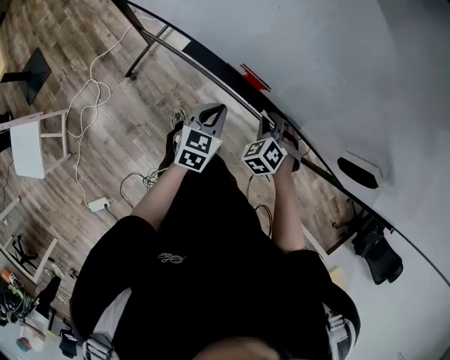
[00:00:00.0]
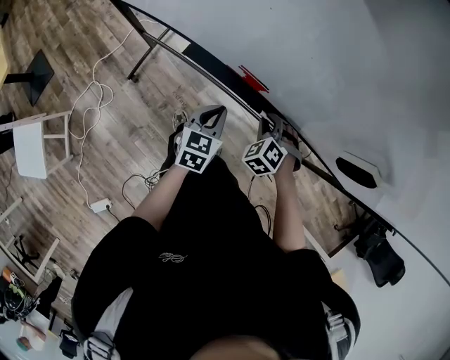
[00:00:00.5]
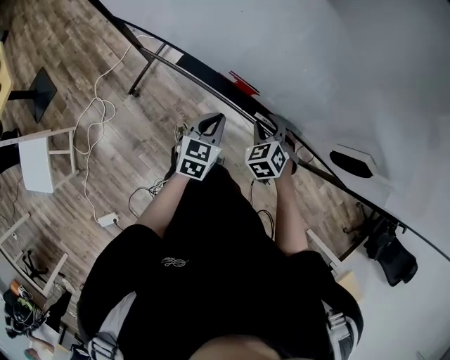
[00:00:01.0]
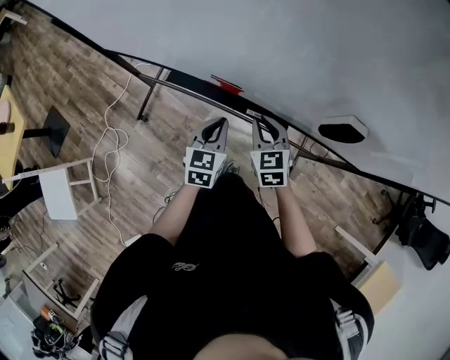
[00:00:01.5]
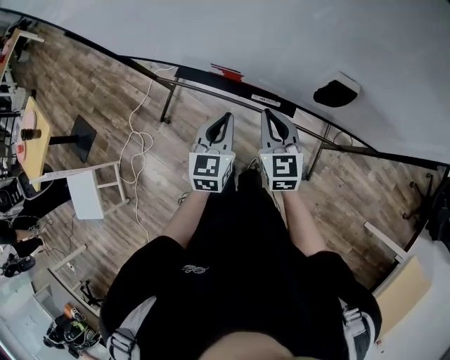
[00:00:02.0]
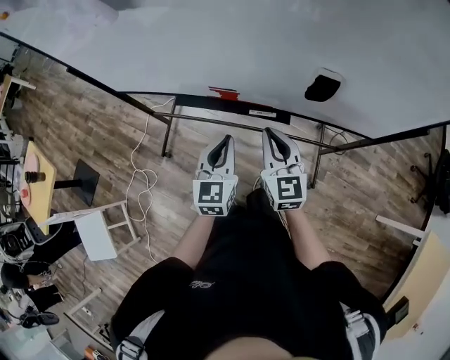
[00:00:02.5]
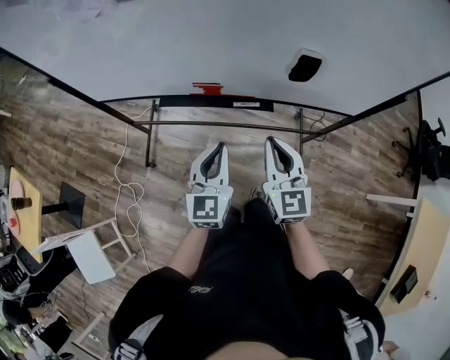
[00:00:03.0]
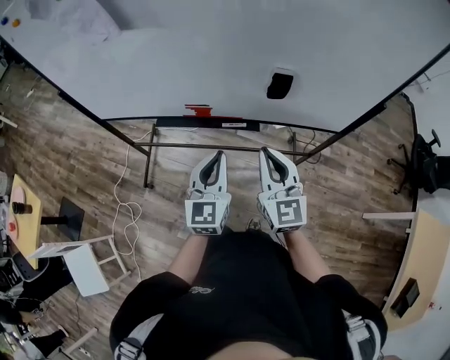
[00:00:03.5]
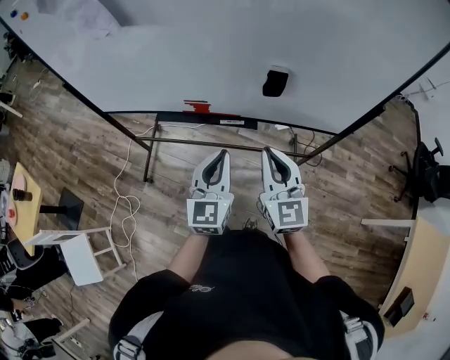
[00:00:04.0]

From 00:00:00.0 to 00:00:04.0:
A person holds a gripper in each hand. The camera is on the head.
From 00:00:00.0 to 00:00:02.0: The right gripper travels upward by about 15 cm, and tilts its fingers roughly 40 degrees upward; the left gripper shifts approximately 15 cm upward and to the right.
From 00:00:02.0 to 00:00:04.0: The left gripper shifts approximately 20 cm upward, backward and to the right, and changes its angle by roughly 20 degrees, while the right gripper shifts about 25 cm backward, upward and to the right, and rotates approximately 20 degrees.

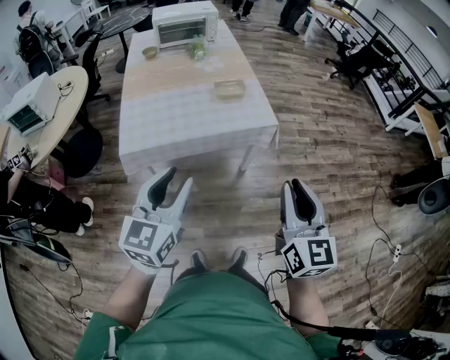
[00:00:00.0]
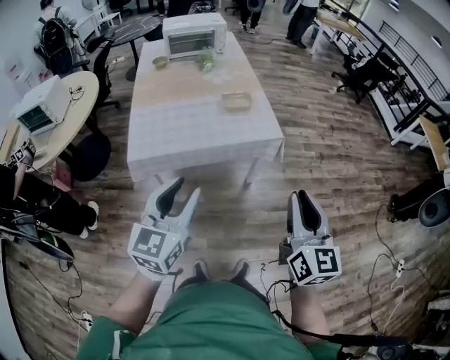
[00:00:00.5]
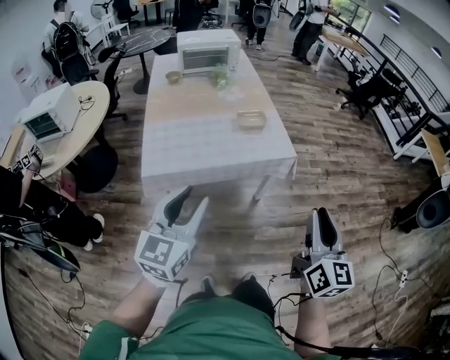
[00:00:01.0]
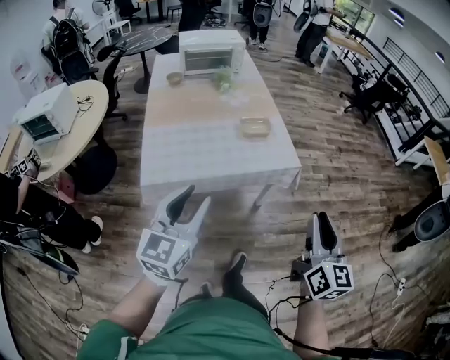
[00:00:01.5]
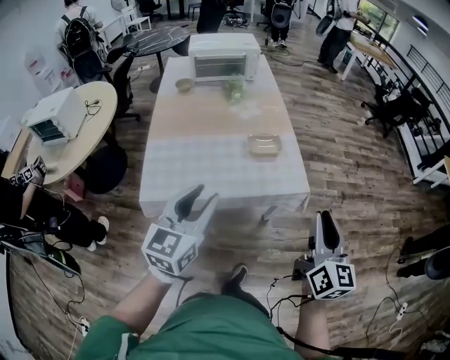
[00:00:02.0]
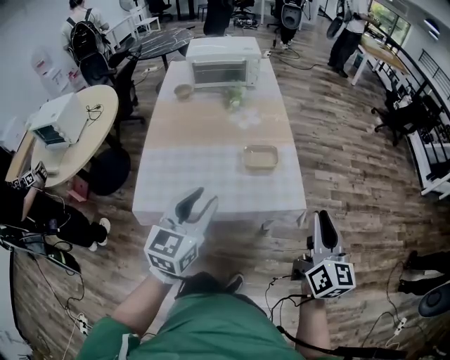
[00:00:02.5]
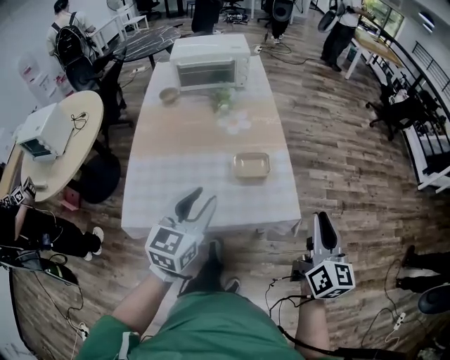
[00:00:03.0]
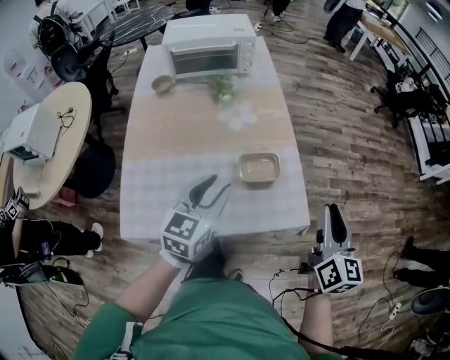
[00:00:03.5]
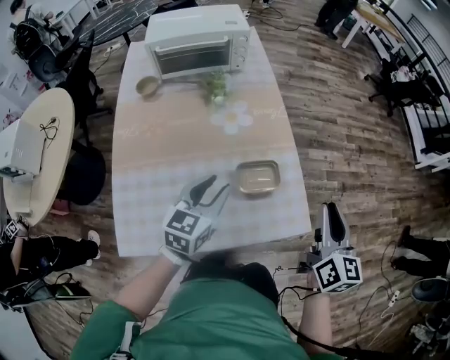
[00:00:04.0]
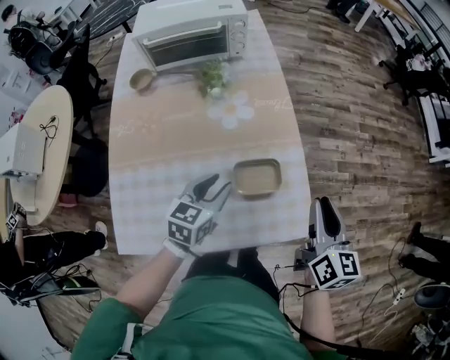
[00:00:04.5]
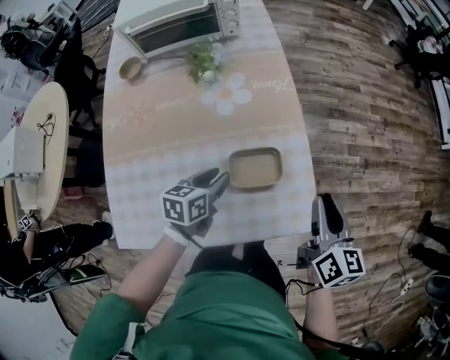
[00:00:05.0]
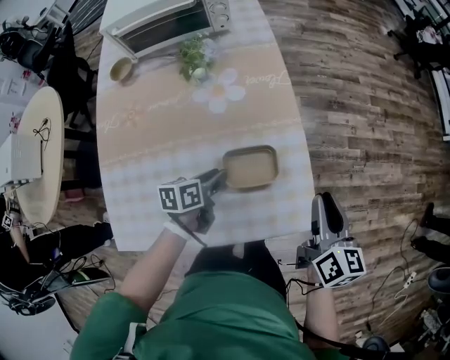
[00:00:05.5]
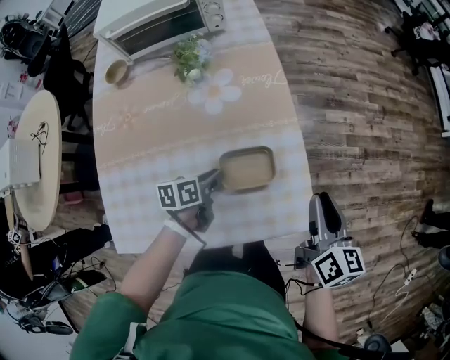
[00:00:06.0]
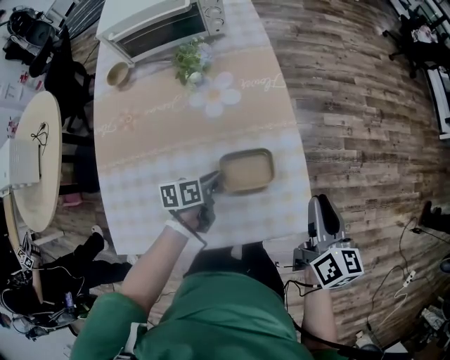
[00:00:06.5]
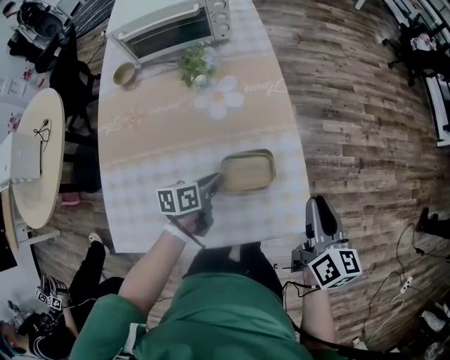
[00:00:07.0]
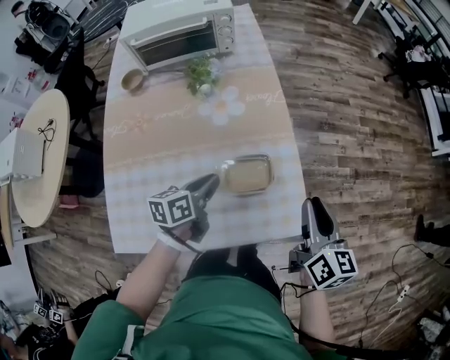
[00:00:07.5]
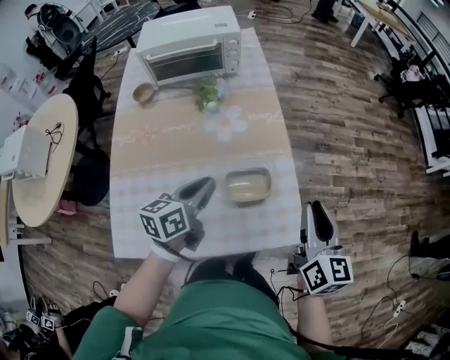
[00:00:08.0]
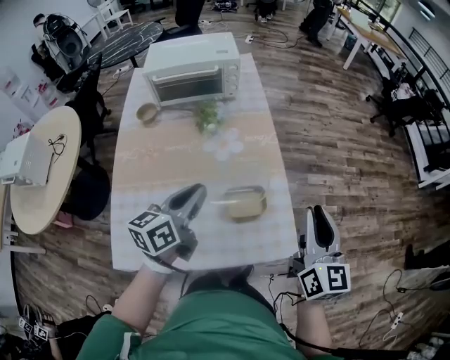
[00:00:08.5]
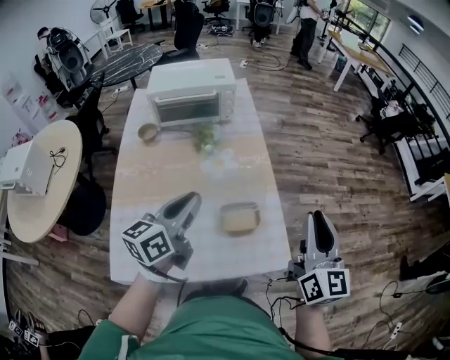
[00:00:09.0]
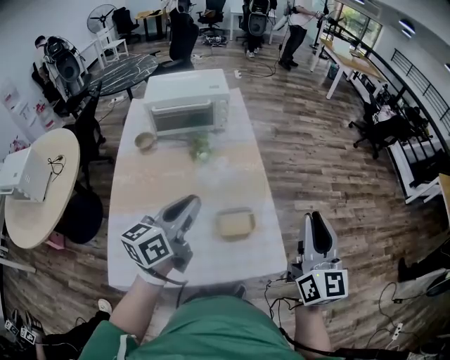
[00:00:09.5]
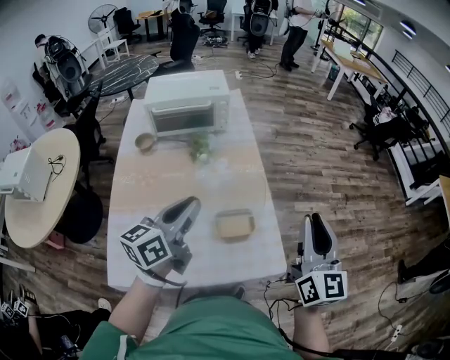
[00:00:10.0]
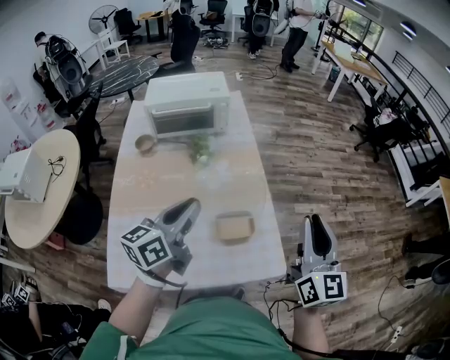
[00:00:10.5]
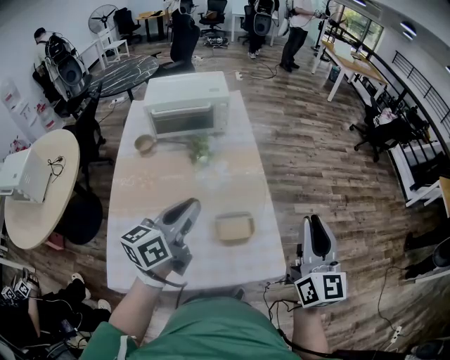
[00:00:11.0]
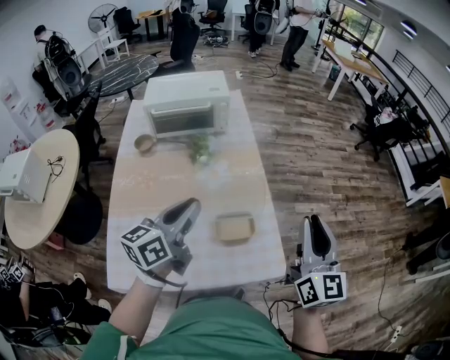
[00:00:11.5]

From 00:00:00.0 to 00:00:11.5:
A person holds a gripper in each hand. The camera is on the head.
From 00:00:00.0 to 00:00:02.0: The grippers both shift forward by about 20 cm.
From 00:00:02.0 to 00:00:04.0: Both grippers travel together forward, some 35 cm.
From 00:00:04.0 to 00:00:06.0: The grippers both shift downward and forward by about 20 cm. The left gripper twists some 40 degrees counterclockwise, seen from behind.
From 00:00:06.0 to 00:00:07.5: The right gripper is displaced upward by roughly 5 cm. Meanwhile the left gripper is displaced upward by roughly 10 cm.
From 00:00:07.5 to 00:00:09.5: The two grippers go roughly 25 cm upward. The right gripper changes its angle by approximately 30 degrees. Meanwhile the left gripper rotates about 30 degrees.
From 00:00:09.5 to 00:00:11.5: The grippers move only a little.

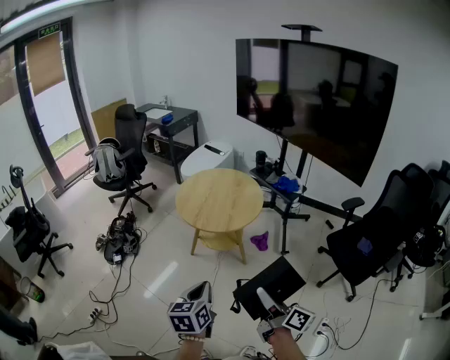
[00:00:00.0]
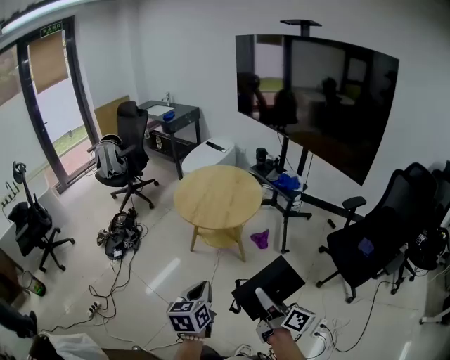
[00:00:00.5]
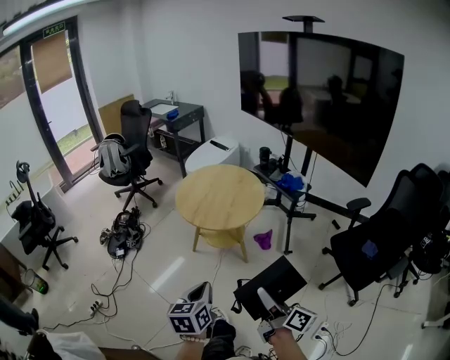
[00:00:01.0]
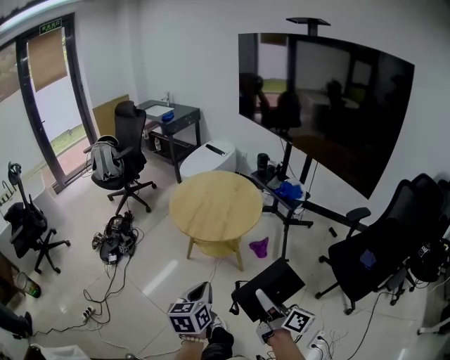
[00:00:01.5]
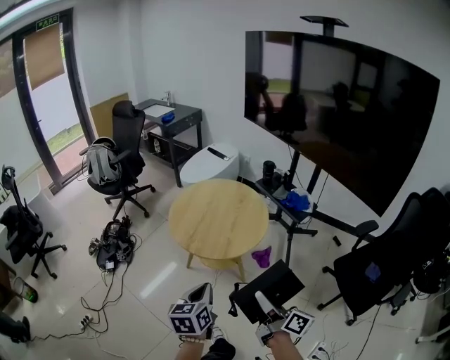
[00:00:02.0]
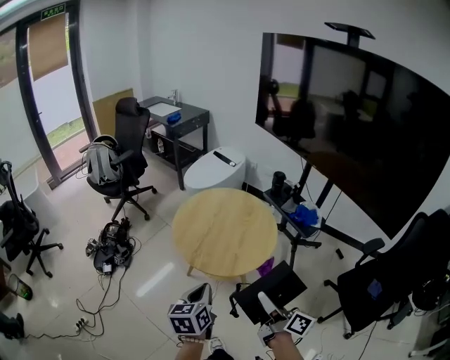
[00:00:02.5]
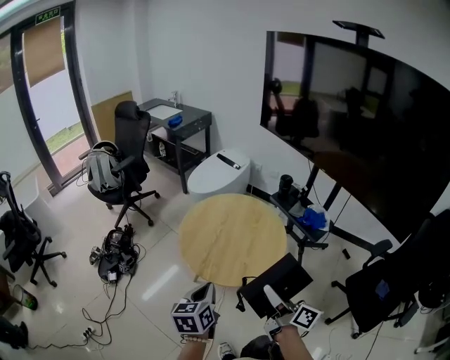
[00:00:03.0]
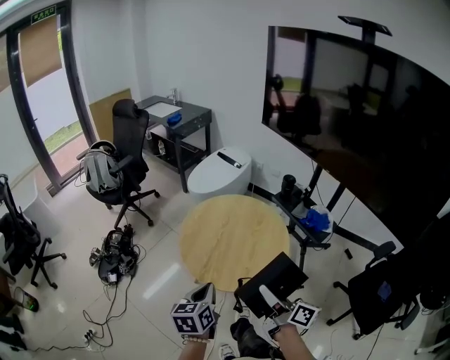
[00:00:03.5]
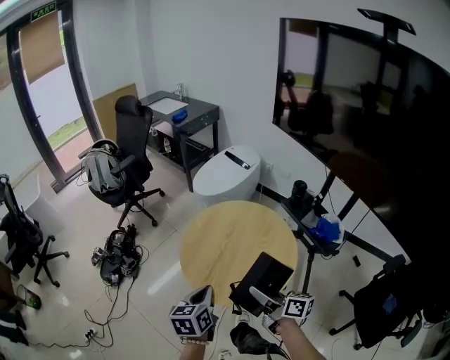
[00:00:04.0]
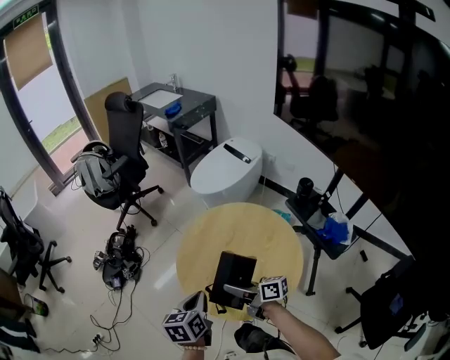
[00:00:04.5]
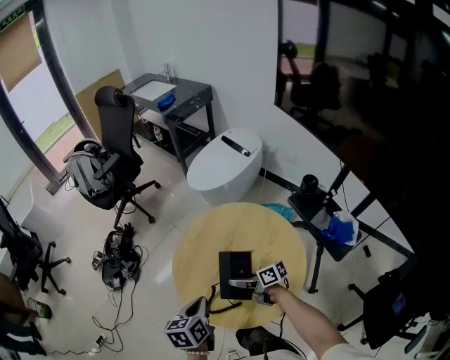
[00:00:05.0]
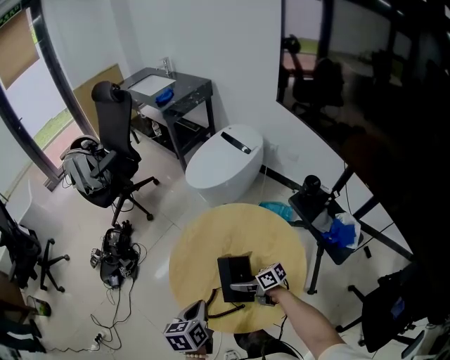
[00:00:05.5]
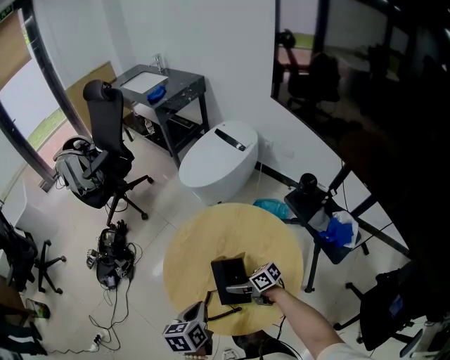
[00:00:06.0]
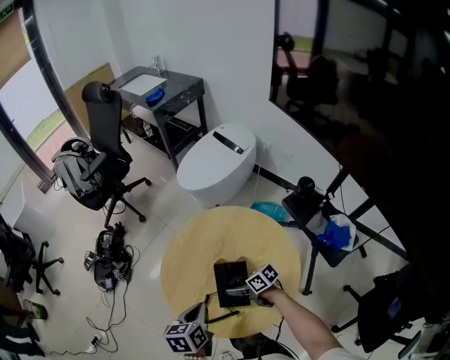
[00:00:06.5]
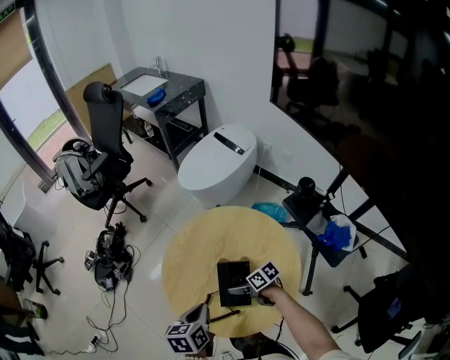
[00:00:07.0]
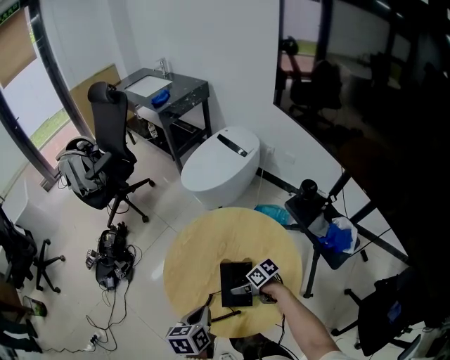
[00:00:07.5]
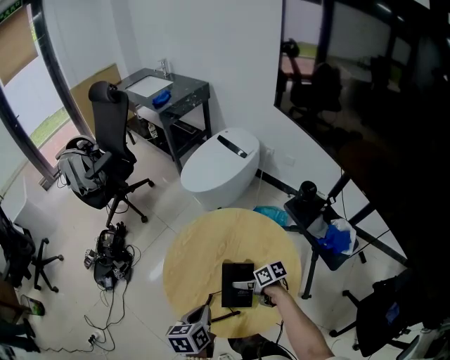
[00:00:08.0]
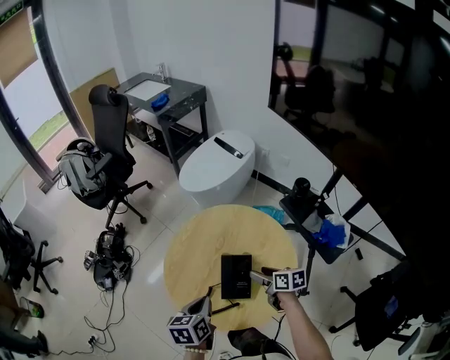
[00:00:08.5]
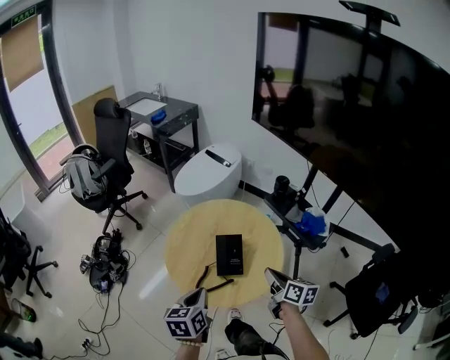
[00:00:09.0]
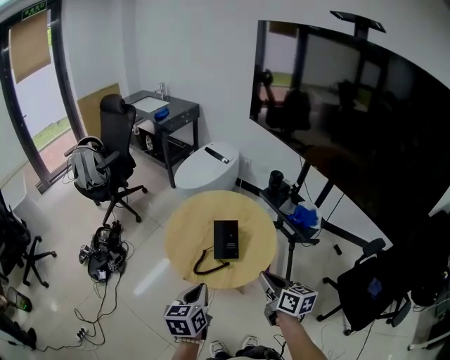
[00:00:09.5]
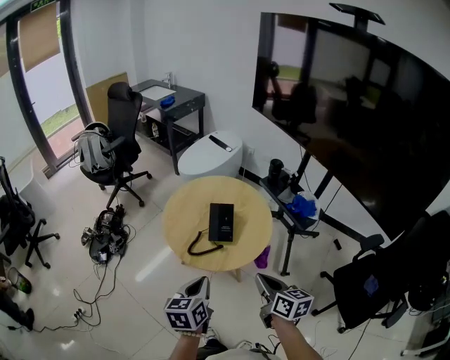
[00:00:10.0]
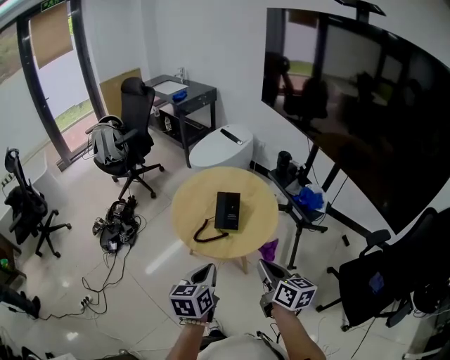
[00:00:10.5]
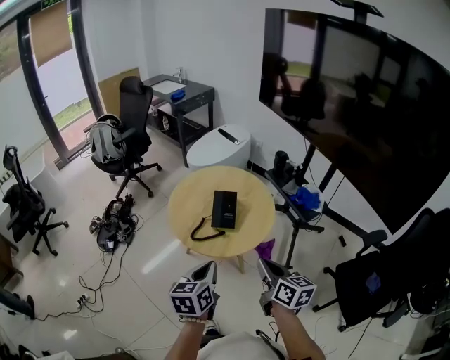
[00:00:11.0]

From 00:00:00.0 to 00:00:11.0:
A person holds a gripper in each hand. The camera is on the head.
From 00:00:00.0 to 00:00:02.0: The two grippers go roughly 15 cm forward.
From 00:00:02.0 to 00:00:03.5: Both grippers travel together forward, about 20 cm.
From 00:00:03.5 to 00:00:05.5: The right gripper goes roughly 25 cm downward, and turns by roughly 60 degrees; the left gripper ends up roughly 20 cm from where it was.
From 00:00:05.5 to 00:00:07.5: The right gripper ends up about 5 cm from where it was, turns by approximately 20 degrees, and opens.
From 00:00:07.5 to 00:00:09.0: The right gripper shifts some 20 cm upward, swivels roughly 70 degrees, and closes. Meanwhile the left gripper shifts by roughly 10 cm.
From 00:00:09.0 to 00:00:11.0: The right gripper is displaced backward and upward by some 20 cm. Meanwhile the left gripper moves backward and to the right, roughly 15 cm.
